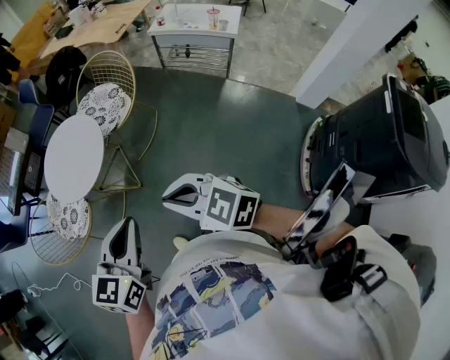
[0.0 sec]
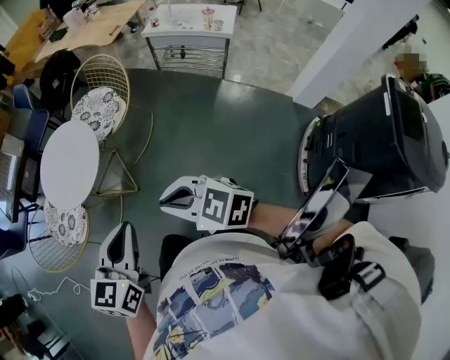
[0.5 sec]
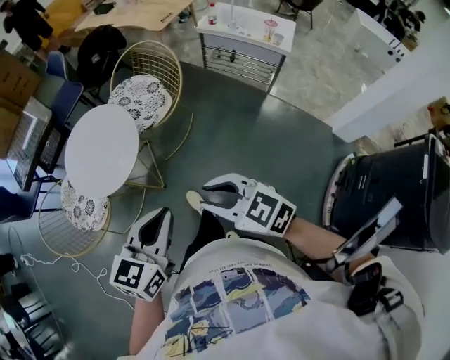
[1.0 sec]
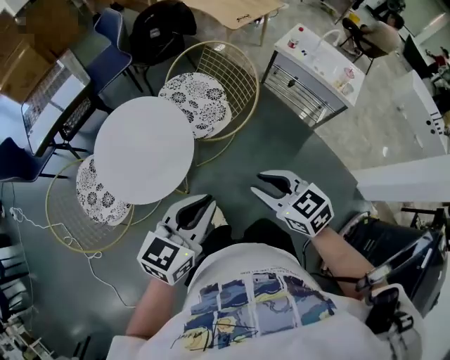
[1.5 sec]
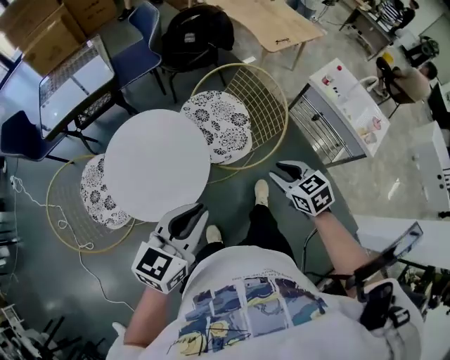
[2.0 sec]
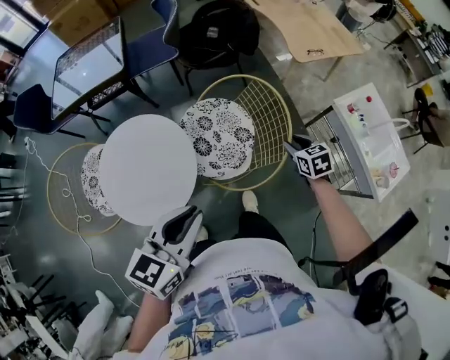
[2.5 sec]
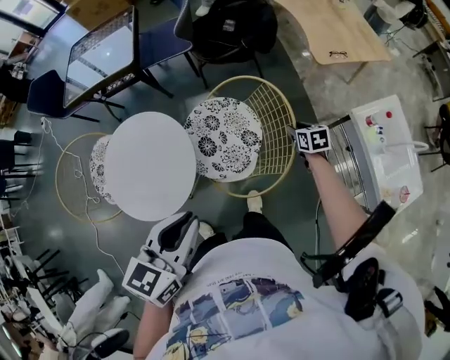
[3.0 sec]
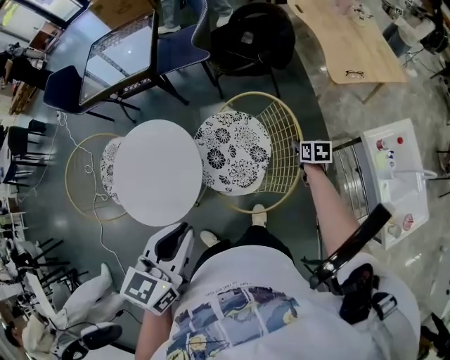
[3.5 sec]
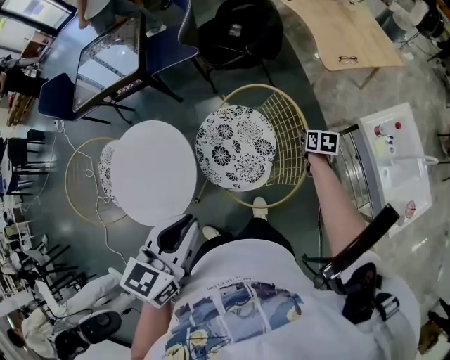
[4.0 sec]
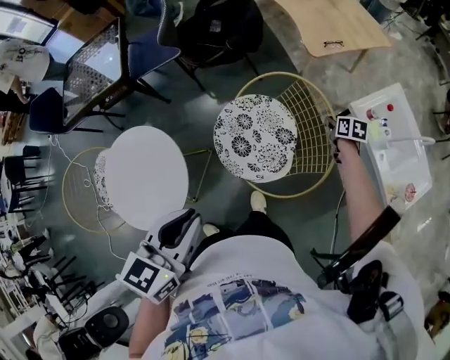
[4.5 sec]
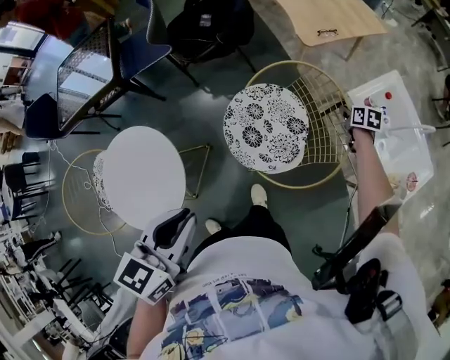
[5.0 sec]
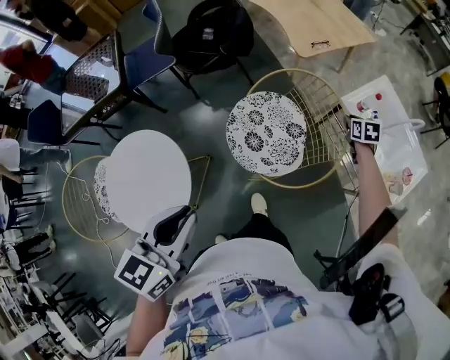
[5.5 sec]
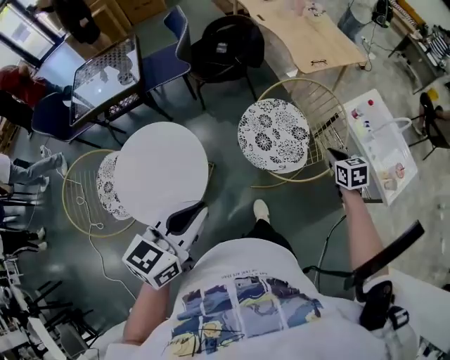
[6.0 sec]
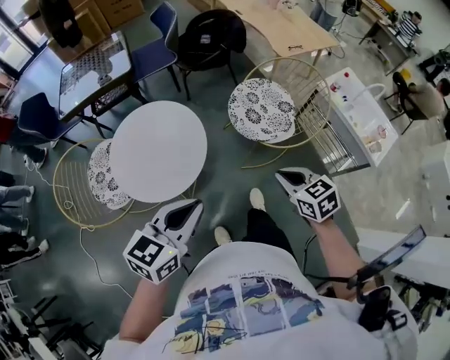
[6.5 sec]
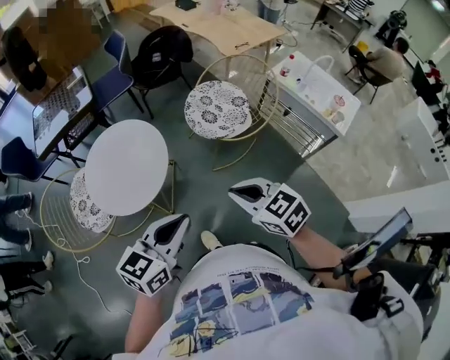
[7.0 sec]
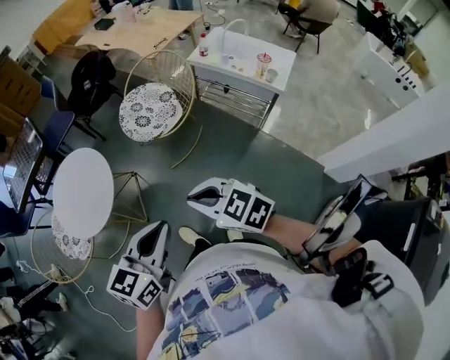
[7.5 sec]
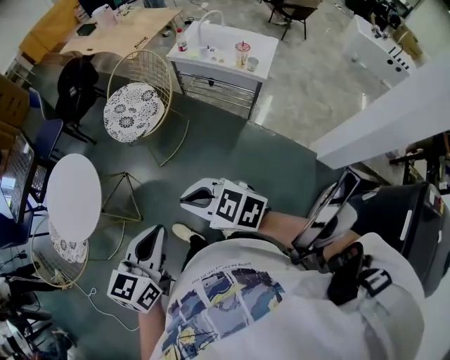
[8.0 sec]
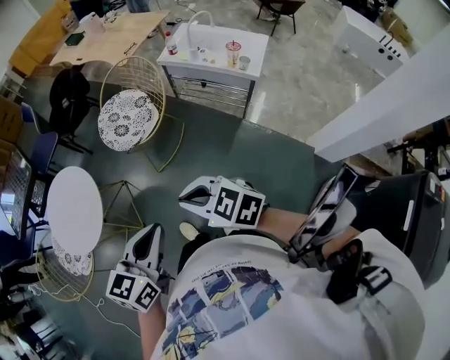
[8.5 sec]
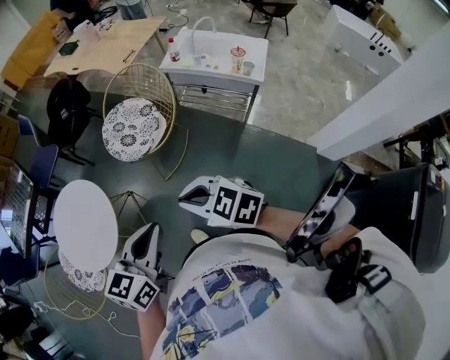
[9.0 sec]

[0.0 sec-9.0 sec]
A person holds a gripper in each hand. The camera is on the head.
0.0 sec to 2.0 sec: Both grippers are carried forward, some 50 cm. The right gripper rotates approximately 20 degrees, and opens up.
2.0 sec to 4.5 sec: The right gripper shifts about 50 cm forward, downward and to the right, and swivels some 30 degrees; the left gripper is displaced forward by roughly 15 cm, and swivels roughly 20 degrees.
4.5 sec to 7.0 sec: Both grippers are carried backward and to the left, roughly 60 cm. The right gripper travels upward by about 35 cm, and rotates approximately 40 degrees; the left gripper changes its angle by some 30 degrees.
7.0 sec to 9.0 sec: Both grippers move to the right, some 15 cm.

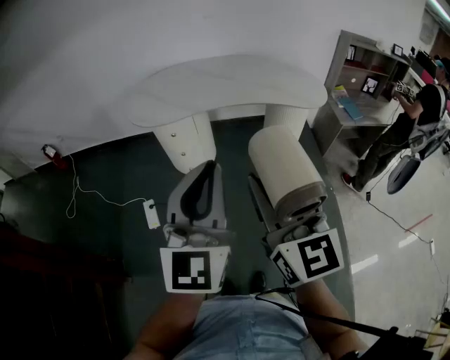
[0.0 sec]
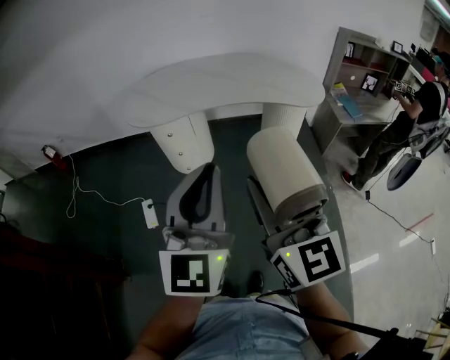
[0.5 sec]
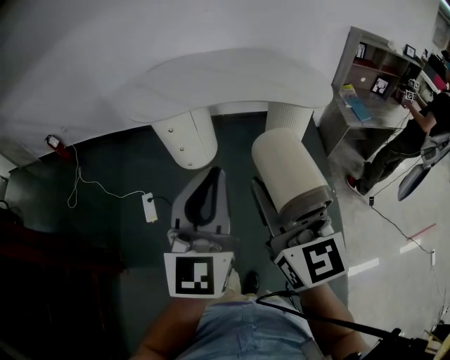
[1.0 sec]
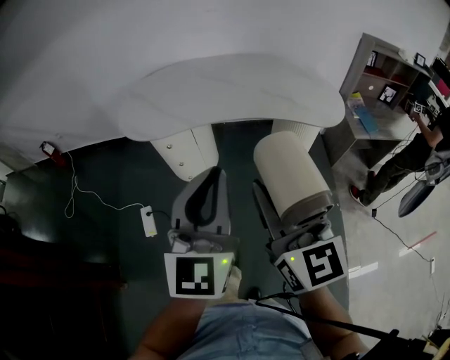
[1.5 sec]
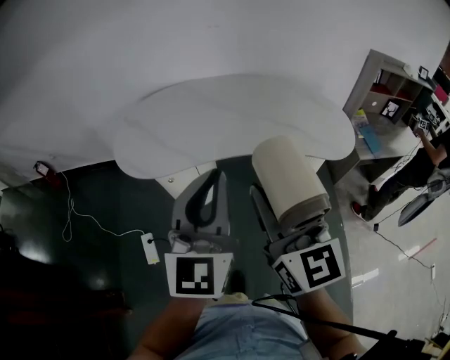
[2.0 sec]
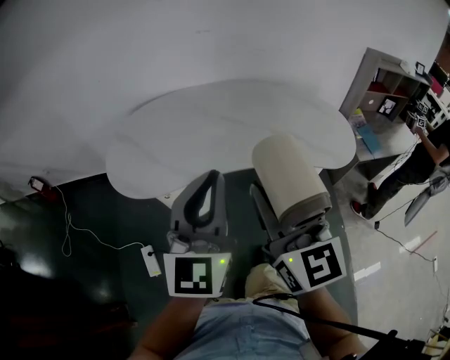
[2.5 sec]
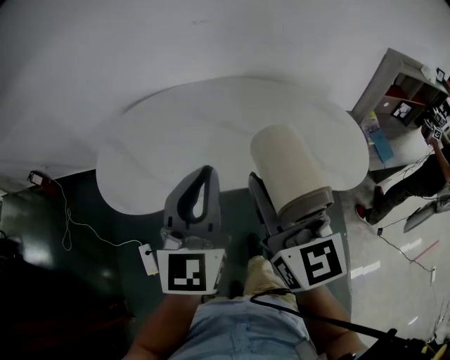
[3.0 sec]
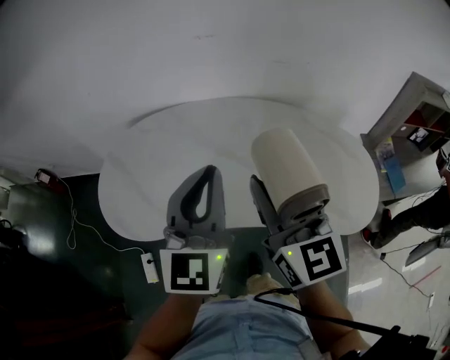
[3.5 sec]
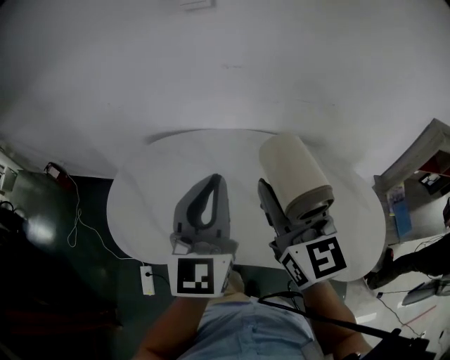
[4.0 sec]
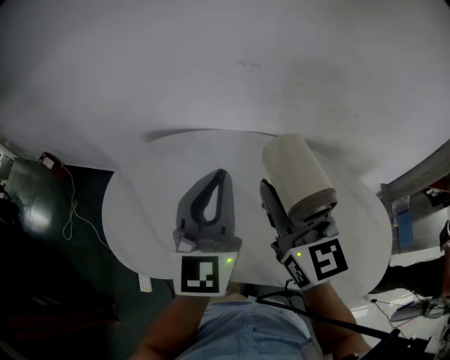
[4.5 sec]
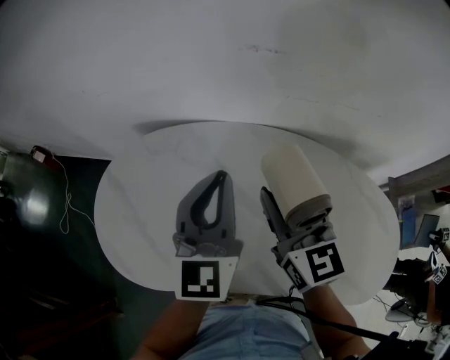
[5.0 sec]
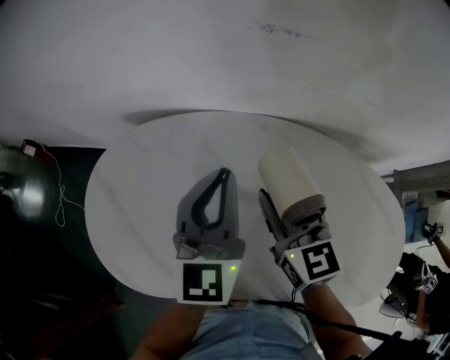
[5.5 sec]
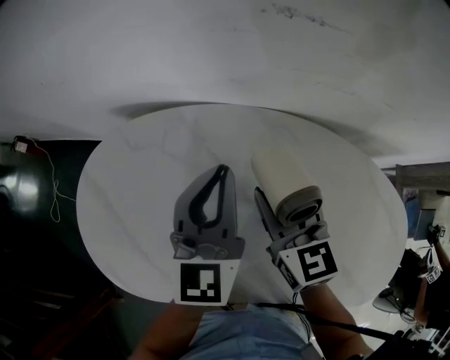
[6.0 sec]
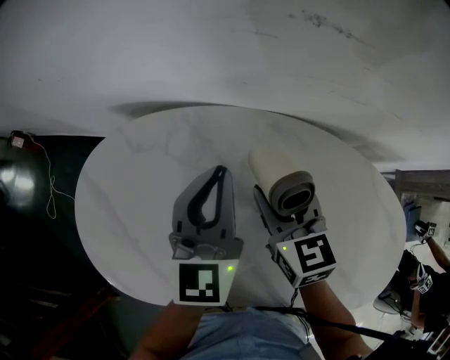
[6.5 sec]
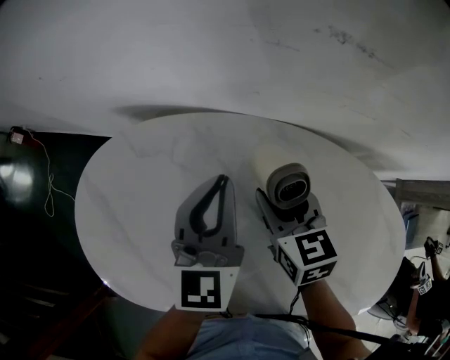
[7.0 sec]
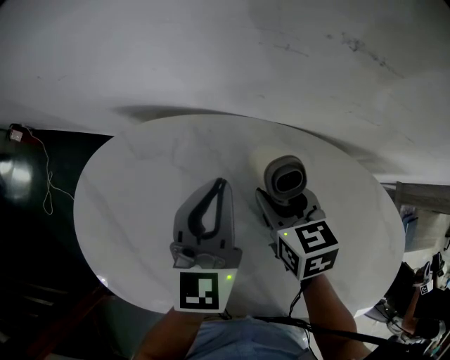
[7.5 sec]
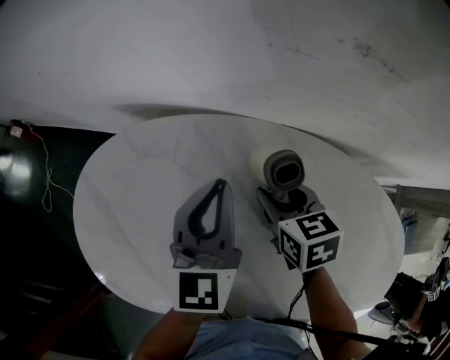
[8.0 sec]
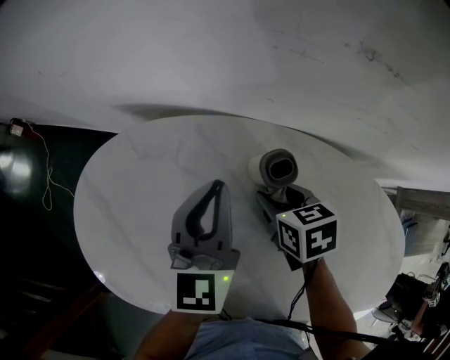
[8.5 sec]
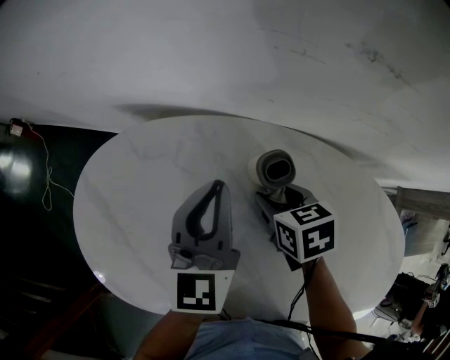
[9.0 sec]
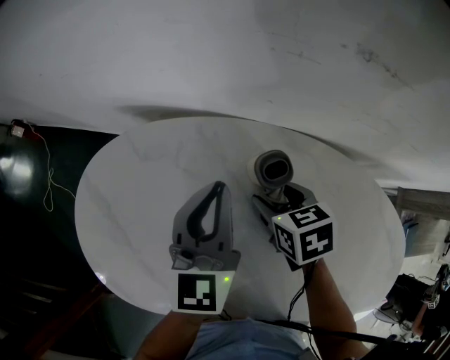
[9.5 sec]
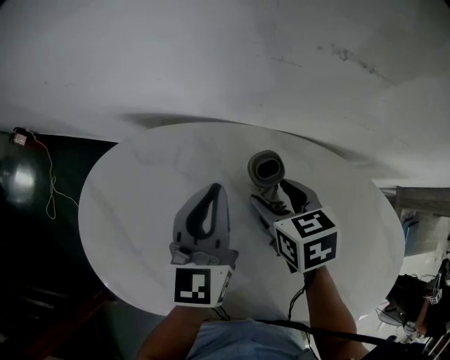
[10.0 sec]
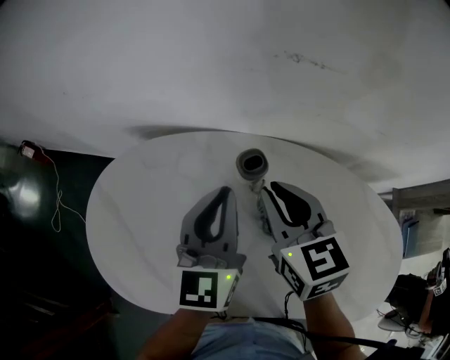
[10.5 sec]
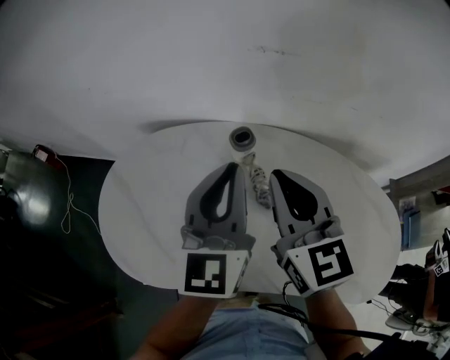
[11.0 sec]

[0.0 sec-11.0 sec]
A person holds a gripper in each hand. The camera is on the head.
0.0 sec to 2.0 sec: The two grippers go about 30 cm forward.
2.0 sec to 3.5 sec: Both grippers travel together forward, approximately 30 cm.
3.5 sec to 5.5 sec: The right gripper goes approximately 35 cm forward and downward, and turns by about 20 degrees, while the left gripper travels forward by some 30 cm.
5.5 sec to 7.5 sec: The grippers both shift downward and forward by approximately 10 cm. The right gripper changes its angle by about 30 degrees.
7.5 sec to 9.0 sec: The grippers stay close to where they were, moving slightly.
9.0 sec to 11.0 sec: The grippers both shift upward and backward by some 25 cm. The right gripper points its fingers approximately 50 degrees further upward, and closes.

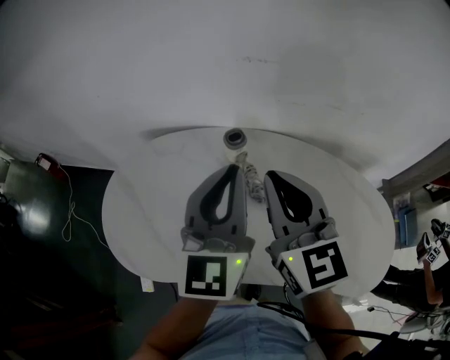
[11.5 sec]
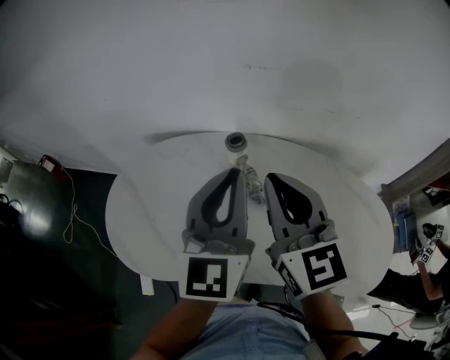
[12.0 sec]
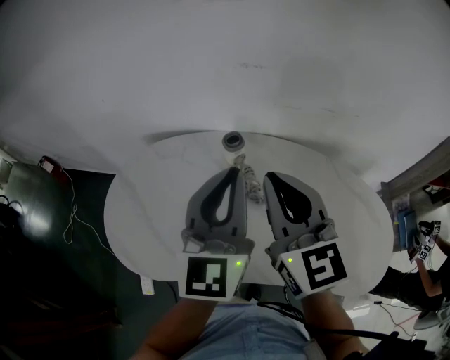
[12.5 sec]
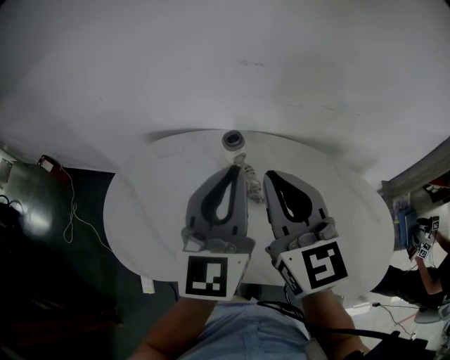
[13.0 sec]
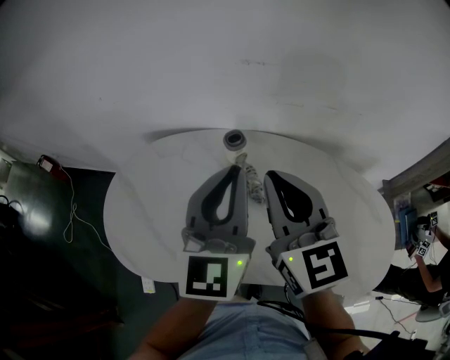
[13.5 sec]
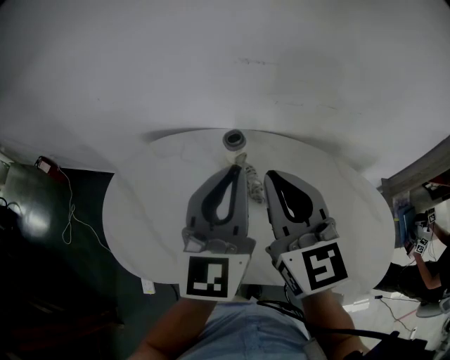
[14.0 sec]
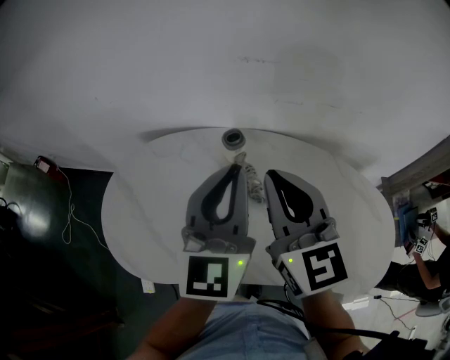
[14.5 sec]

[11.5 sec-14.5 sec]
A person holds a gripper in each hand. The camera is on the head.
11.5 sec to 13.0 sec: There are only small adjustments of the grippers.
13.0 sec to 14.5 sec: Both grippers stay about where they are.

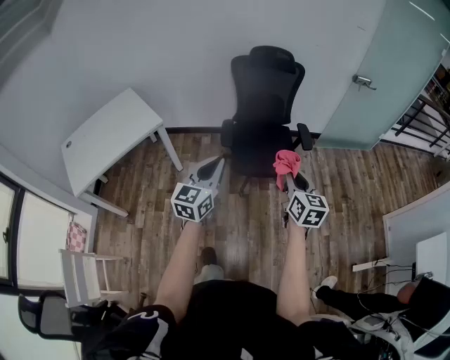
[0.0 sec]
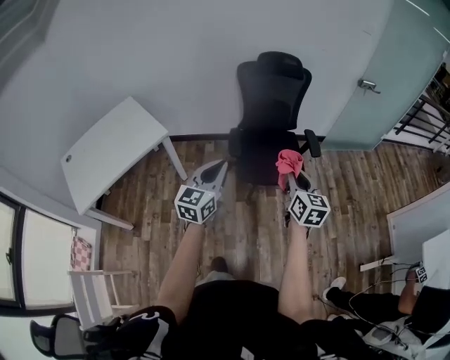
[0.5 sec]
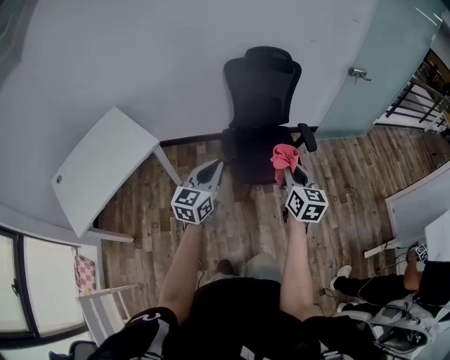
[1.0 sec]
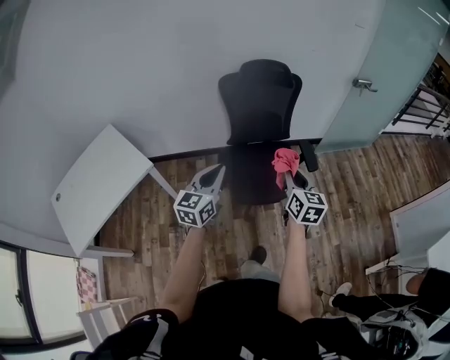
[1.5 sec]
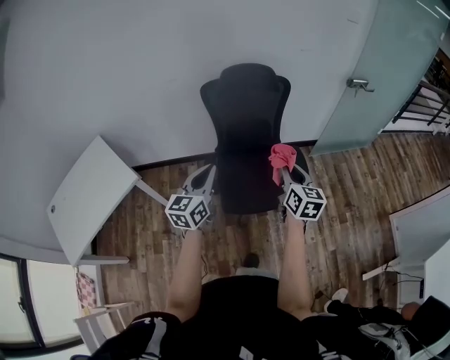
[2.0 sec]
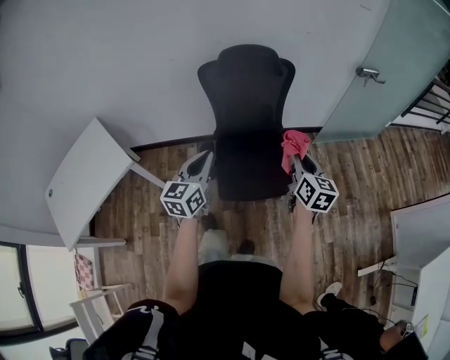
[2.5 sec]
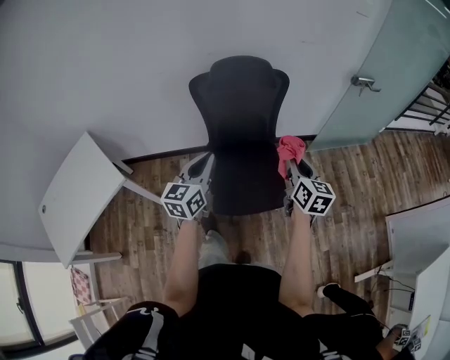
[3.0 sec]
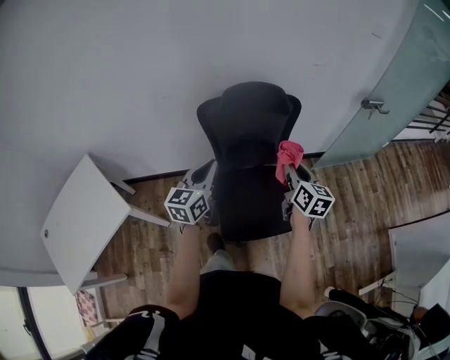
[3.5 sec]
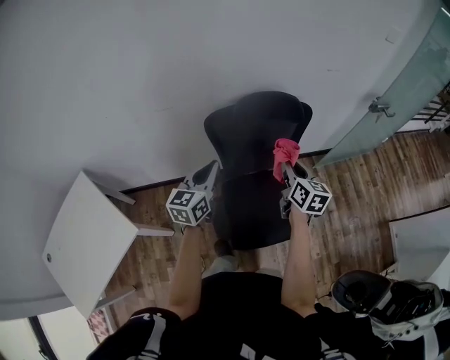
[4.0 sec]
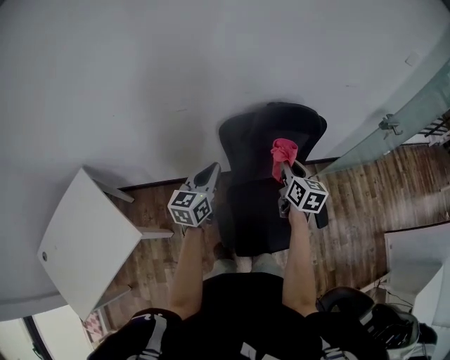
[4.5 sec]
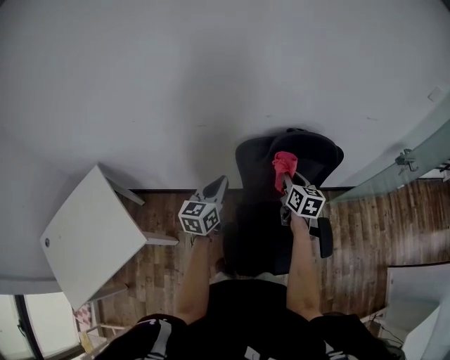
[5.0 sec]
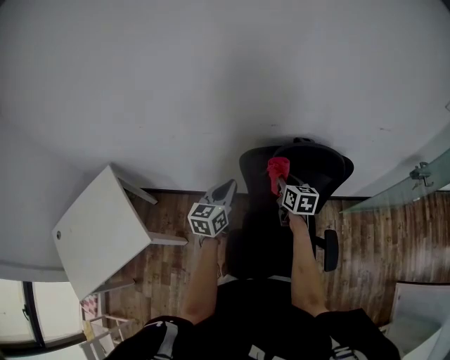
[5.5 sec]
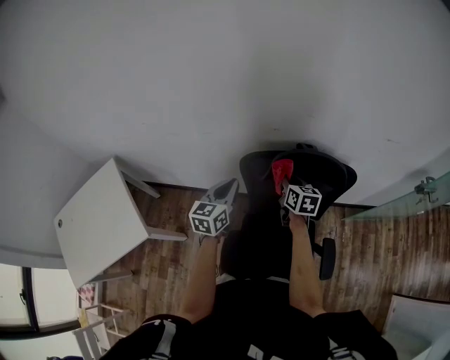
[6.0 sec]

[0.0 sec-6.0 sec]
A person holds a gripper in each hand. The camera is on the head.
0.0 sec to 2.0 sec: Both grippers travel together forward, roughly 30 cm.
2.0 sec to 4.0 sec: The two grippers go some 30 cm forward.
4.0 sec to 6.0 sec: The right gripper heads forward and to the left, covering approximately 25 cm, and rotates approximately 20 degrees. The left gripper goes some 15 cm forward.
